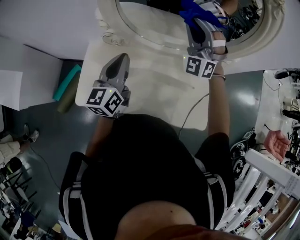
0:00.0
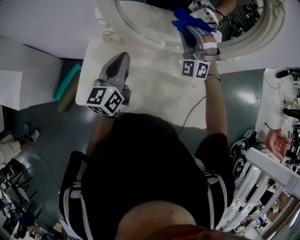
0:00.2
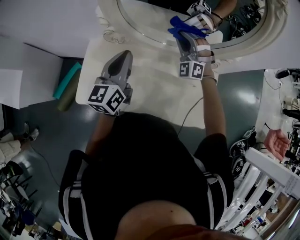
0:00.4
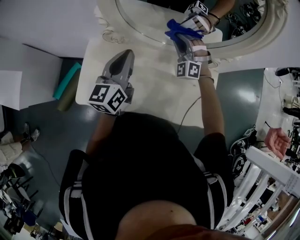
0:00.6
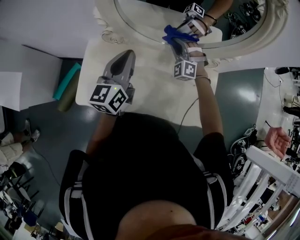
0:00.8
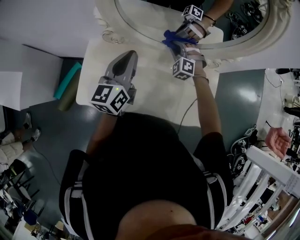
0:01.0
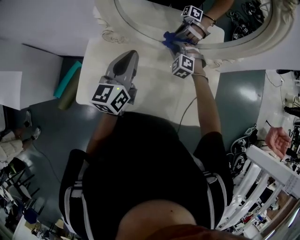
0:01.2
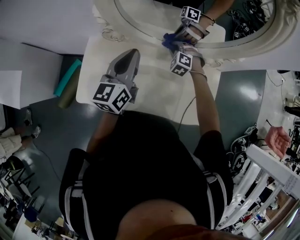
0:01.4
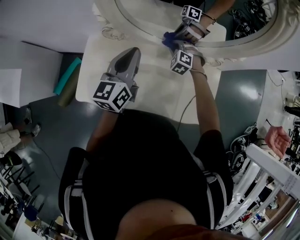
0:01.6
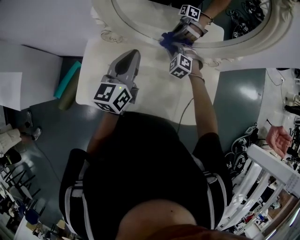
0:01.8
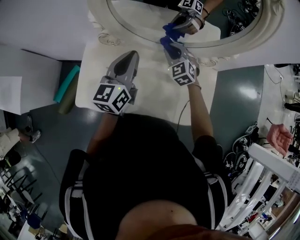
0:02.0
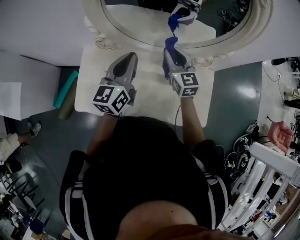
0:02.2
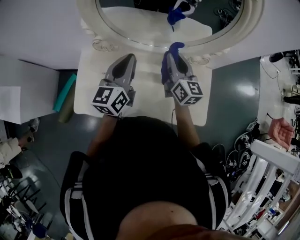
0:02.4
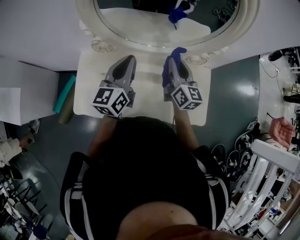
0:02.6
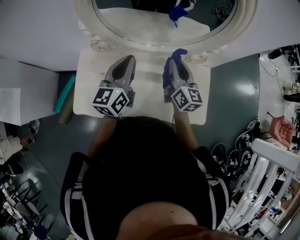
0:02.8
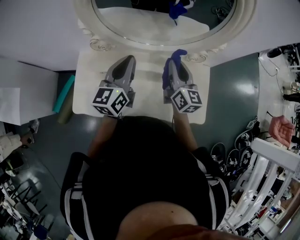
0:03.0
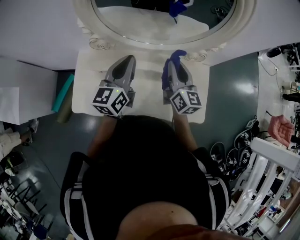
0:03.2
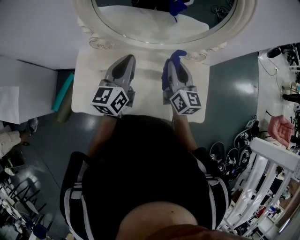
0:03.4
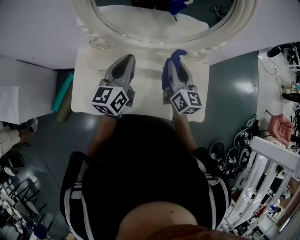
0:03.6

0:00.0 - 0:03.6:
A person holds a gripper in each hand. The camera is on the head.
0:00.0 - 0:01.8: The right gripper moves downward, roughly 30 cm, and tips its fingers downward by approximately 50 degrees.
0:01.8 - 0:03.6: The right gripper goes about 25 cm upward, backward and to the right, and rolls clockwise, seen from behind, by roughly 80 degrees.

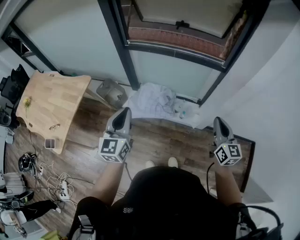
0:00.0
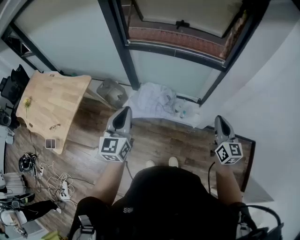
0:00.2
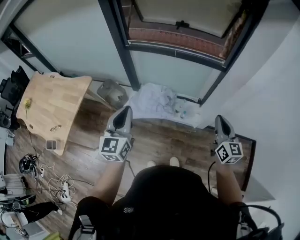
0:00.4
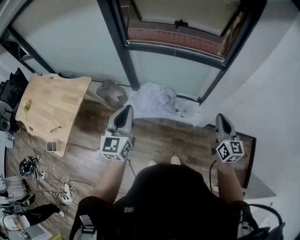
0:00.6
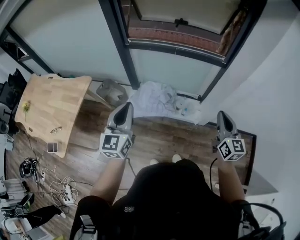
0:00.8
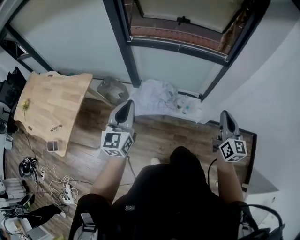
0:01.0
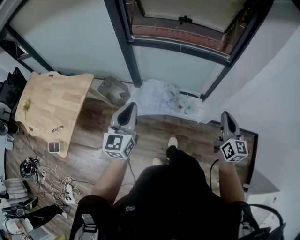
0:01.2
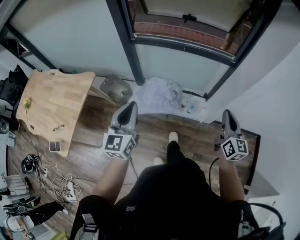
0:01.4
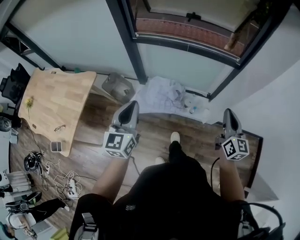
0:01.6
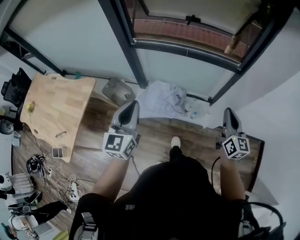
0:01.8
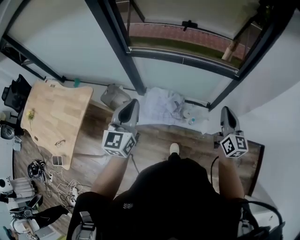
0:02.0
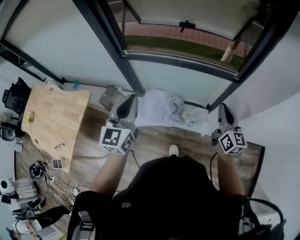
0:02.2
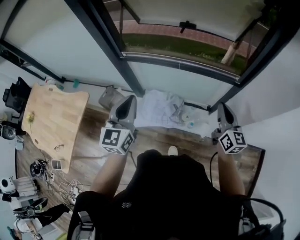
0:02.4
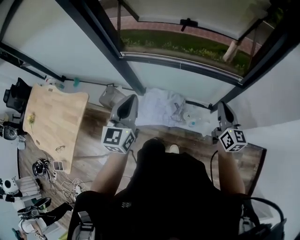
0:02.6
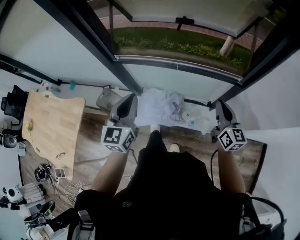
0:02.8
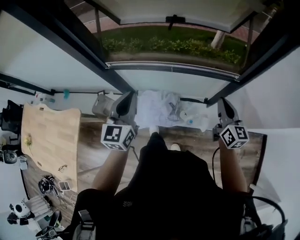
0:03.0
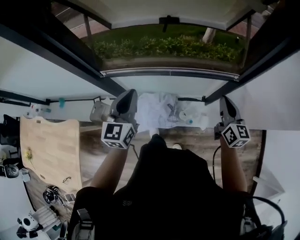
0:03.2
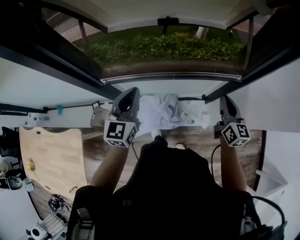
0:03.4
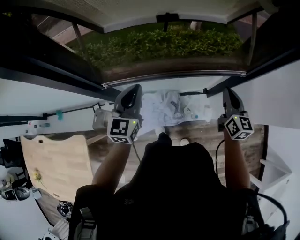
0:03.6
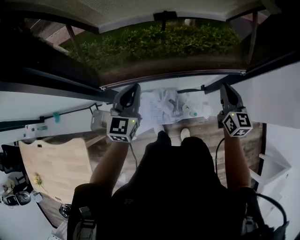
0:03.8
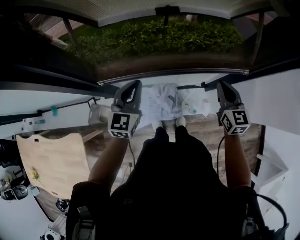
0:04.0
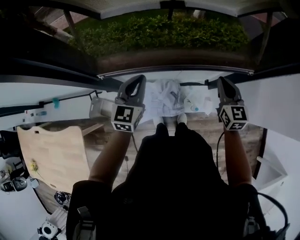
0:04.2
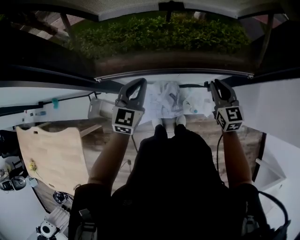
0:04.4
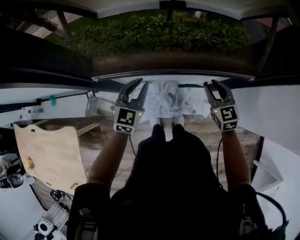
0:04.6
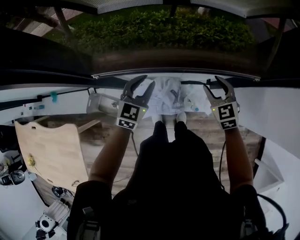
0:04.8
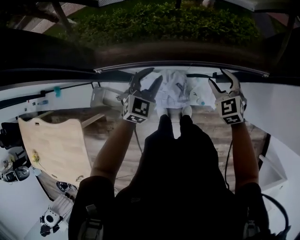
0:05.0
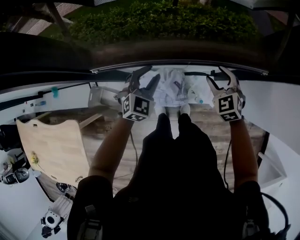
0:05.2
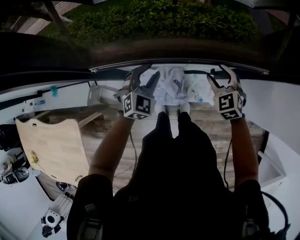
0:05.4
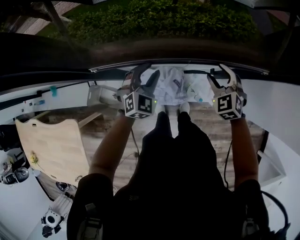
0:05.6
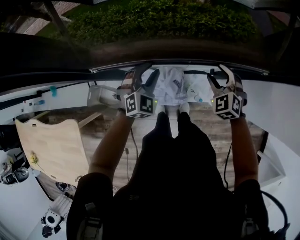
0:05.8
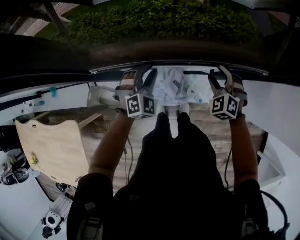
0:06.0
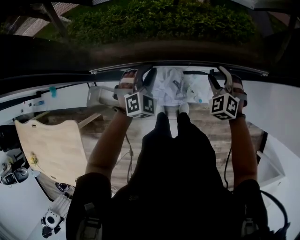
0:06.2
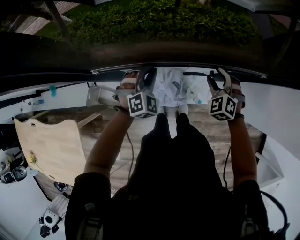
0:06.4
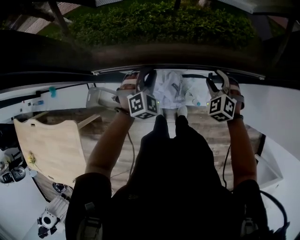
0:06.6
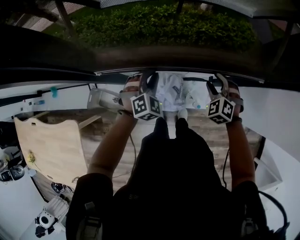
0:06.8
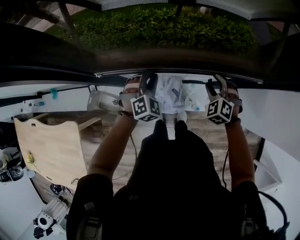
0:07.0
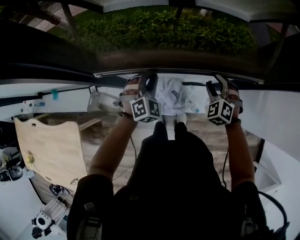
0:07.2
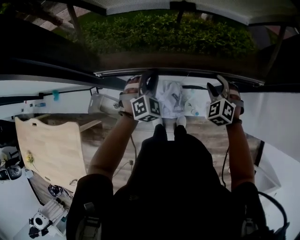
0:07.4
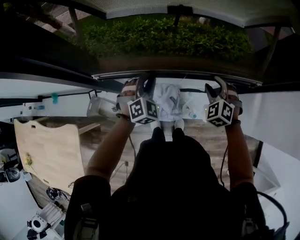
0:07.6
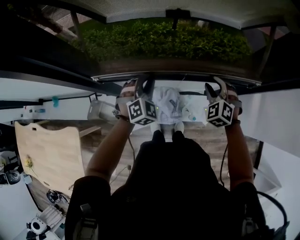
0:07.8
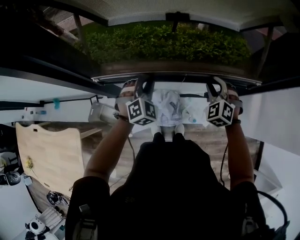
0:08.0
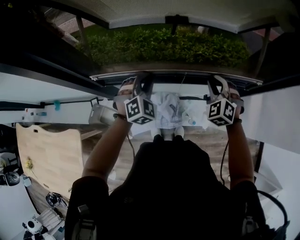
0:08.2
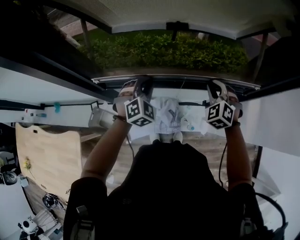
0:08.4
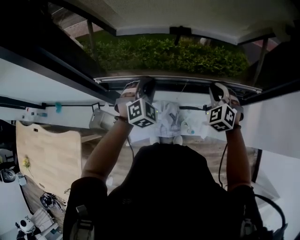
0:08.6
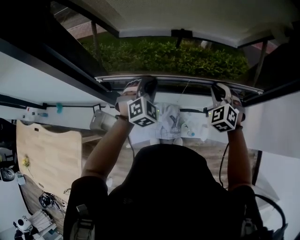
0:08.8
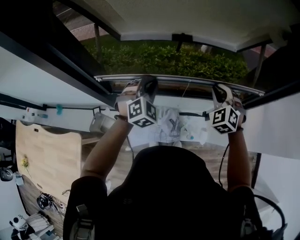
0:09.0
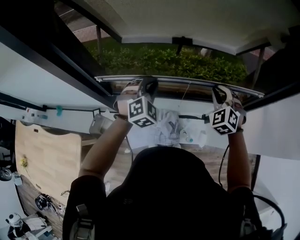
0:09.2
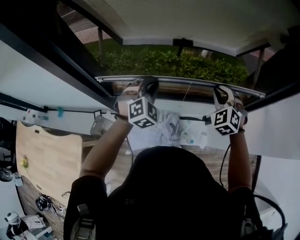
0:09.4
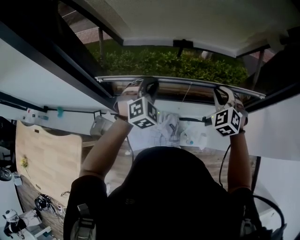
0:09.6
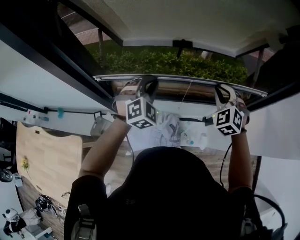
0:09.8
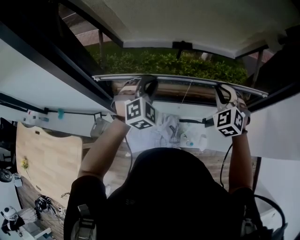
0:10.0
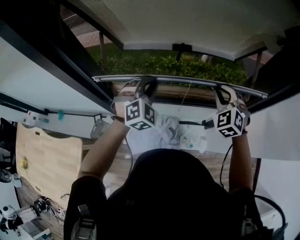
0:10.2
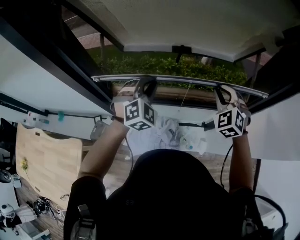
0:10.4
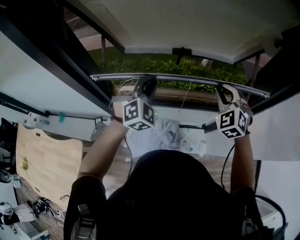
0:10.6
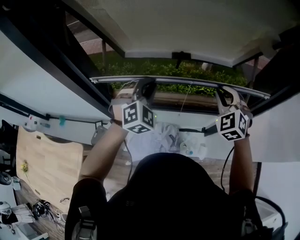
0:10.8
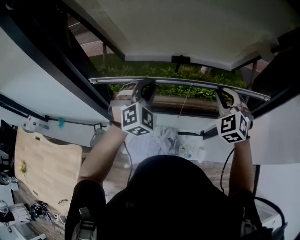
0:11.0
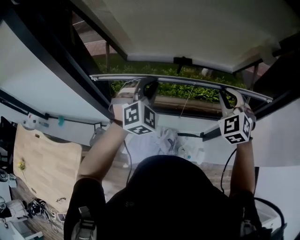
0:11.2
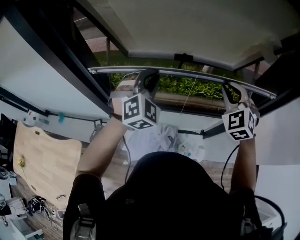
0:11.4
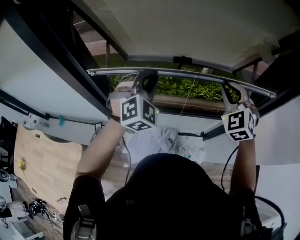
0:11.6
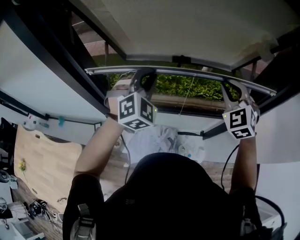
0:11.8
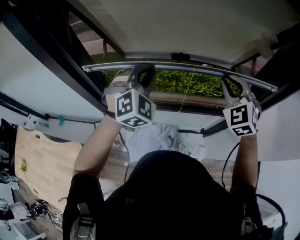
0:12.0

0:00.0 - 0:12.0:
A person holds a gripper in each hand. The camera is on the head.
0:00.0 - 0:01.6: Both grippers move forward and to the left, about 10 cm.
0:01.6 - 0:03.0: Both grippers move forward, approximately 35 cm.
0:03.0 - 0:04.4: The left gripper travels forward and downward by some 20 cm, and swivels roughly 20 degrees; the right gripper is displaced forward, to the left and downward by some 20 cm, and turns by about 20 degrees.
0:04.4 - 0:06.0: The two grippers go roughly 10 cm downward. The right gripper rolls counterclockwise, seen from behind, by roughly 50 degrees, and opens up, while the left gripper turns by some 40 degrees, and opens up.
0:06.0 - 0:07.6: Both grippers move upward, about 5 cm.
0:07.6 - 0:09.0: The grippers both shift upward by some 10 cm. The right gripper closes its fingers.
0:09.0 - 0:10.4: The grippers both shift upward by roughly 5 cm.
0:10.4 - 0:12.0: The grippers both shift upward by some 10 cm.

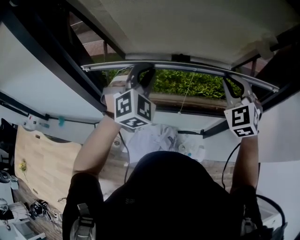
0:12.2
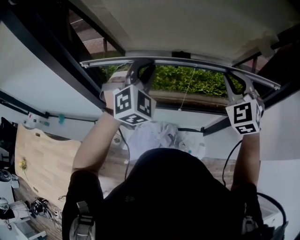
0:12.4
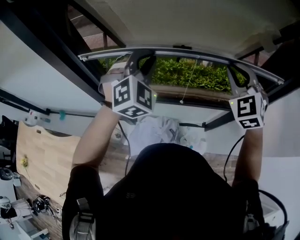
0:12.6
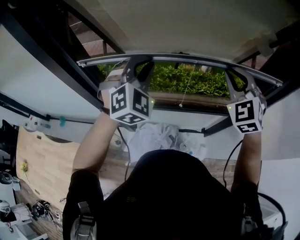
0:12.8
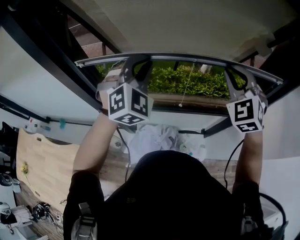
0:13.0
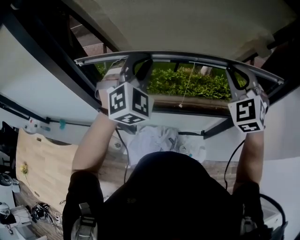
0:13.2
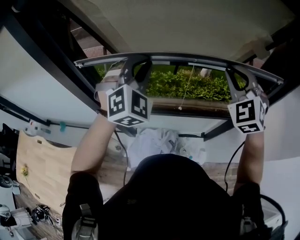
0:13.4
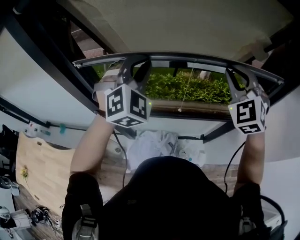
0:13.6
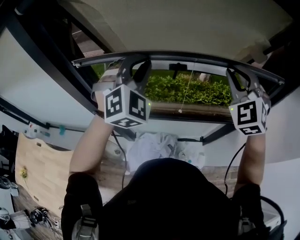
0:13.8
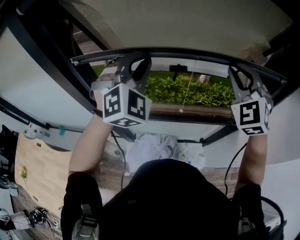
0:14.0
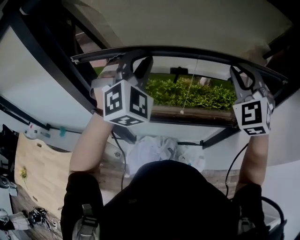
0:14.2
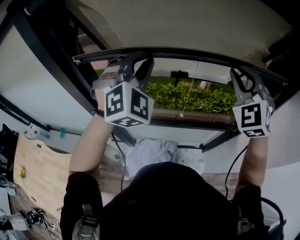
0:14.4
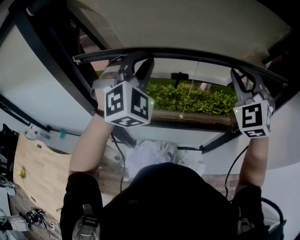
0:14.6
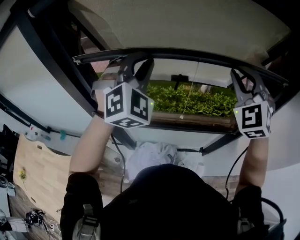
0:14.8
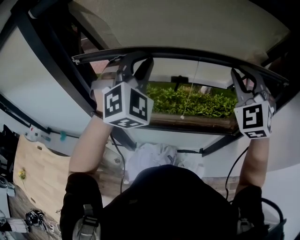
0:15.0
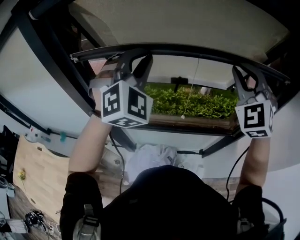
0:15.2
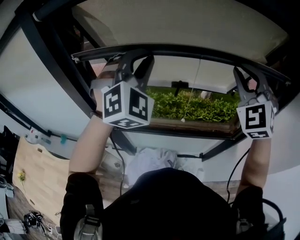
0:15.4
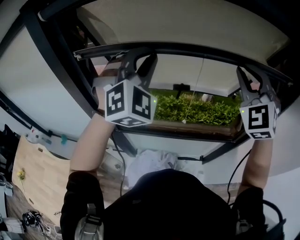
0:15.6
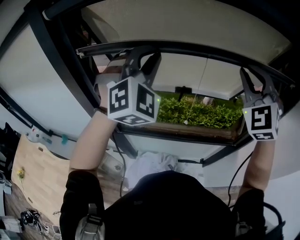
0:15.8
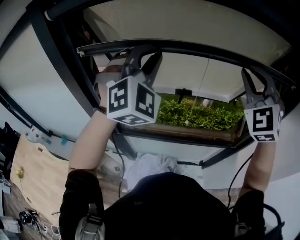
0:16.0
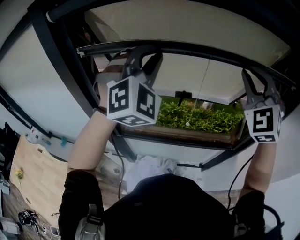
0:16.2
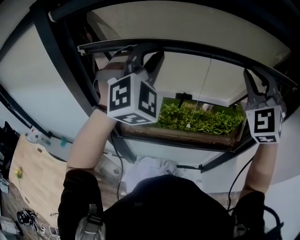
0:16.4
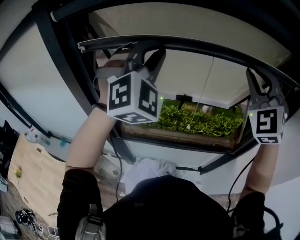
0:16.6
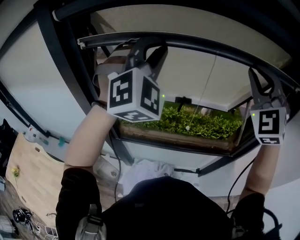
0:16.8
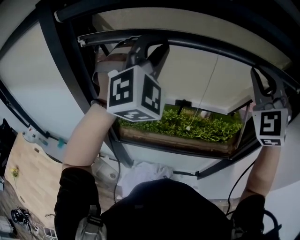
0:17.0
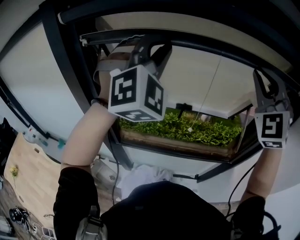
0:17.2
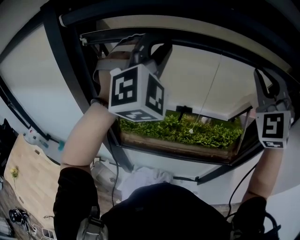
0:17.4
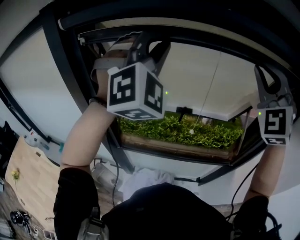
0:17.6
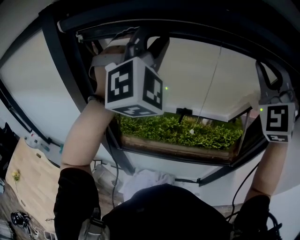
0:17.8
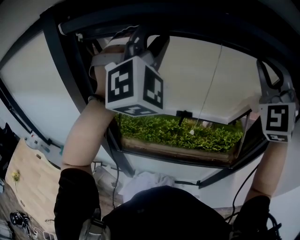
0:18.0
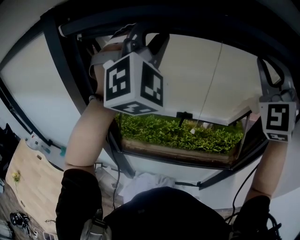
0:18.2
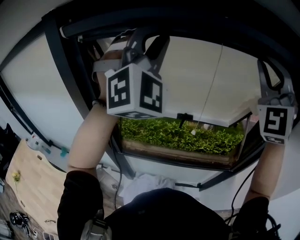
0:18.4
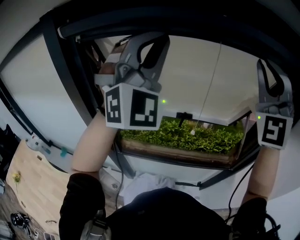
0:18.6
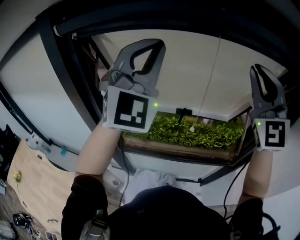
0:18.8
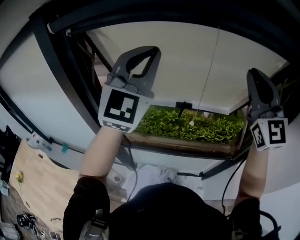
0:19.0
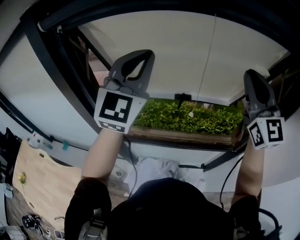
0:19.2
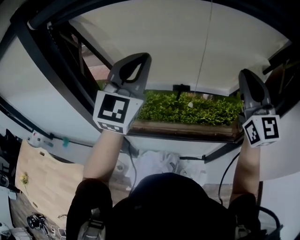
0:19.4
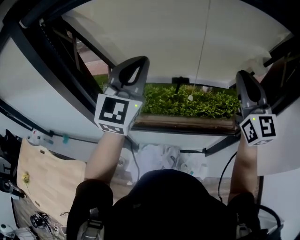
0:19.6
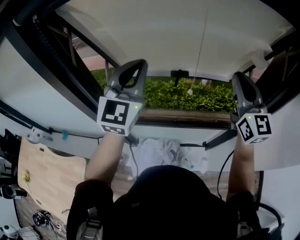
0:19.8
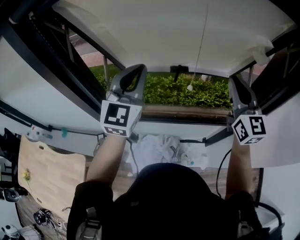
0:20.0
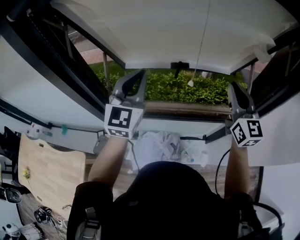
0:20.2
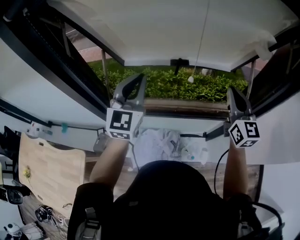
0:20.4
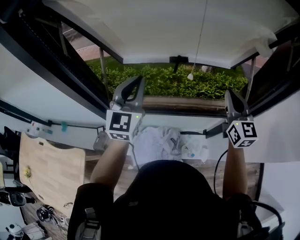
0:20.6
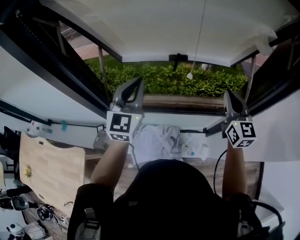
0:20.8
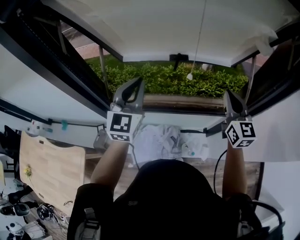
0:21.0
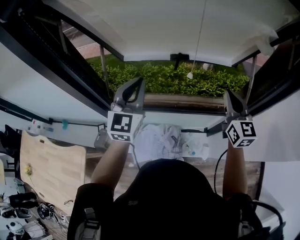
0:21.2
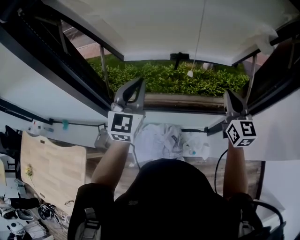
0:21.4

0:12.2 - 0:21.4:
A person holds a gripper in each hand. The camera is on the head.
0:12.2 - 0:13.8: The two grippers go some 10 cm upward.
0:13.8 - 0:15.2: The two grippers go approximately 10 cm upward.
0:15.2 - 0:16.8: Both grippers travel together upward, some 10 cm.
0:16.8 - 0:18.4: Both grippers move upward, some 10 cm.
0:18.4 - 0:19.8: The two grippers go roughly 25 cm downward. The left gripper twists some 50 degrees counterclockwise, seen from behind; the right gripper rotates around the line of its fingers by approximately 60 degrees, clockwise from behind.
0:19.8 - 0:21.4: Both grippers move downward, approximately 15 cm.
